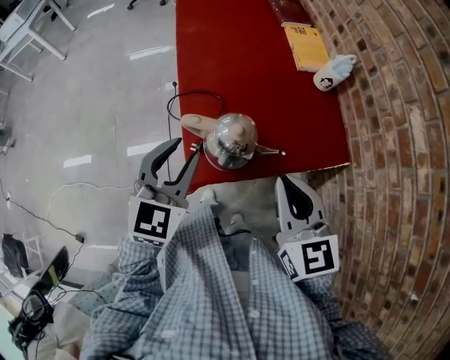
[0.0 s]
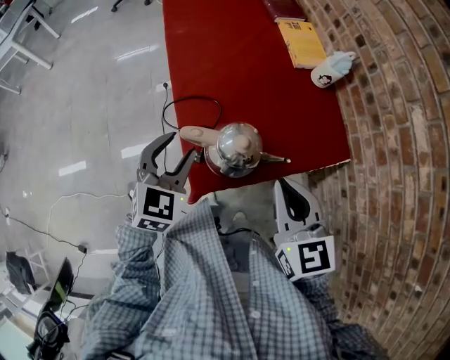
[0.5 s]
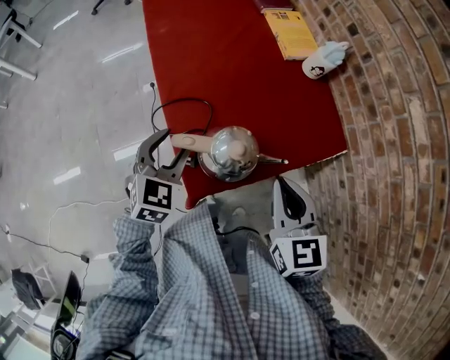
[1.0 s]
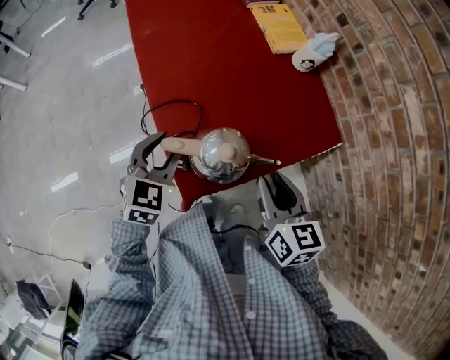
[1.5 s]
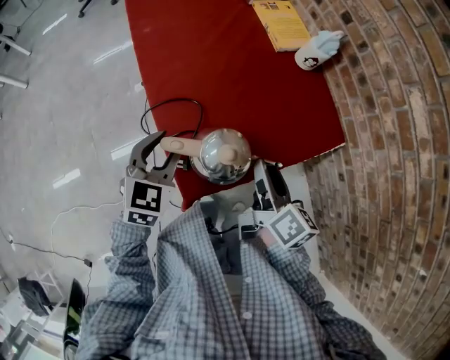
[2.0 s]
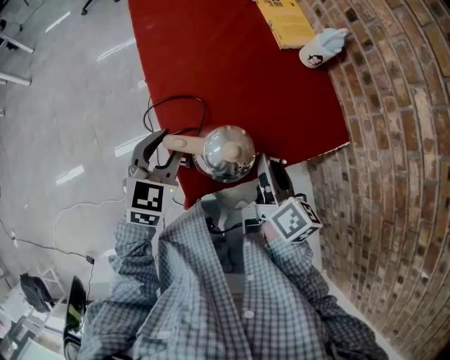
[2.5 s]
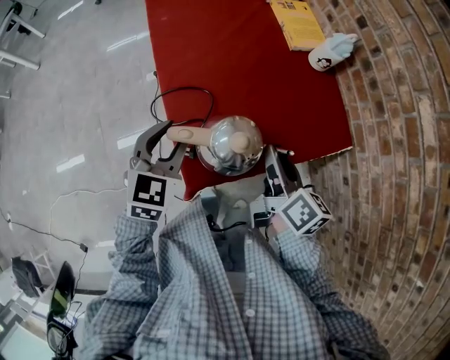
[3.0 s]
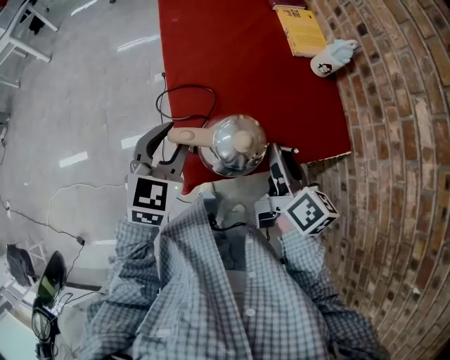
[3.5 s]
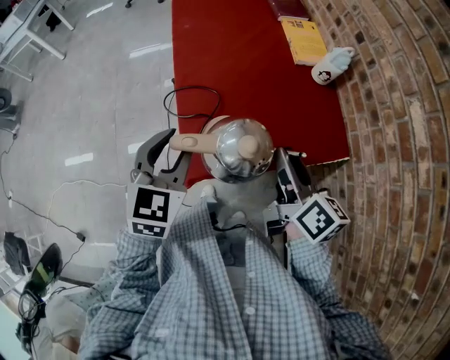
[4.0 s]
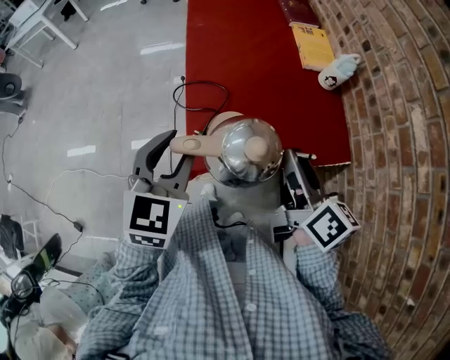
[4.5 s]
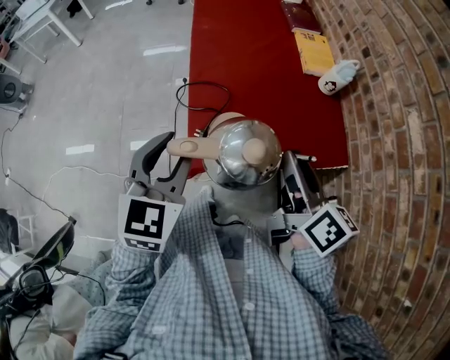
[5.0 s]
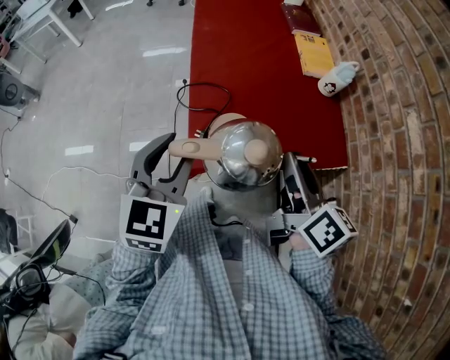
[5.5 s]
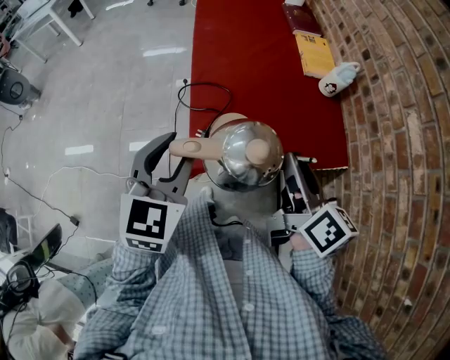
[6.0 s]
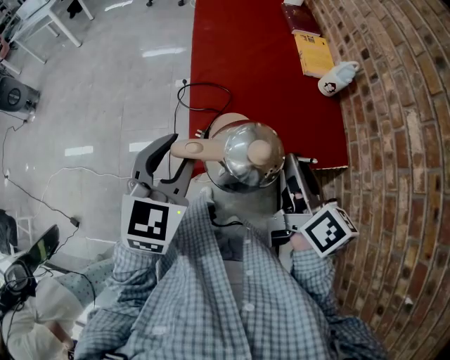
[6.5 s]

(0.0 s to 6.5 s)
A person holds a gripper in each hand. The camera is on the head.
0.0 s - 2.0 s: Both grippers travel together downward and forward, approximately 15 cm. The right gripper rotates around the line of its fingers by approximately 60 degrees, clockwise from behind, and opens up.
2.0 s - 4.5 s: The right gripper heads upward, covering some 10 cm, and turns by some 20 degrees; the left gripper shifts some 20 cm upward and backward, and swivels about 20 degrees.
4.5 s - 6.5 s: The grippers move only a little.

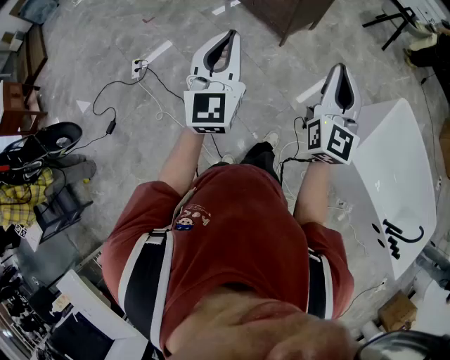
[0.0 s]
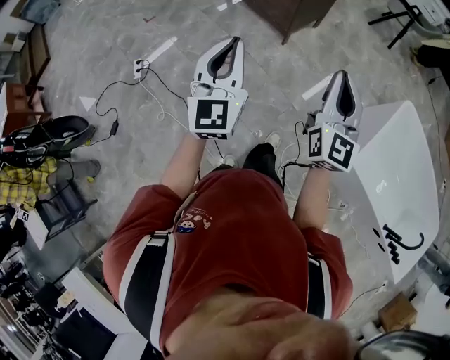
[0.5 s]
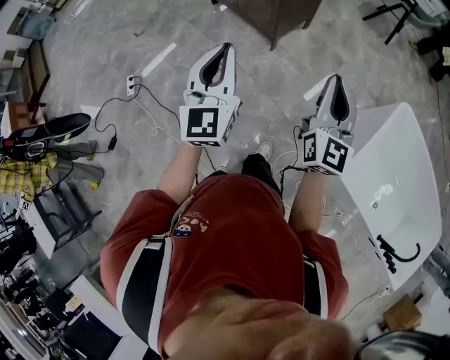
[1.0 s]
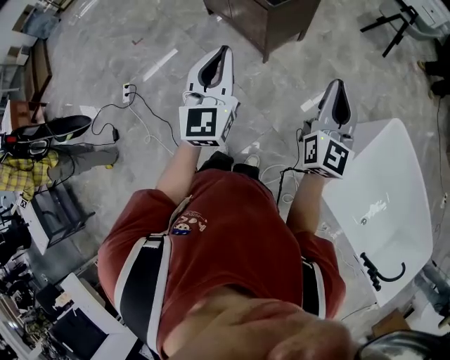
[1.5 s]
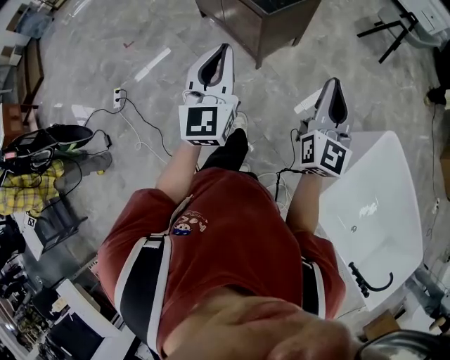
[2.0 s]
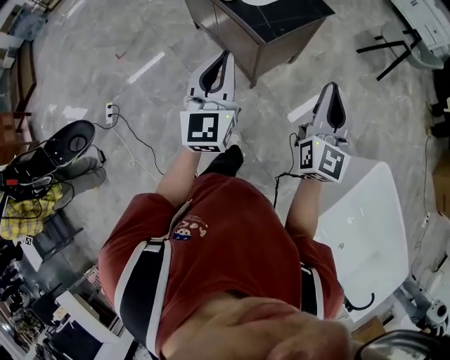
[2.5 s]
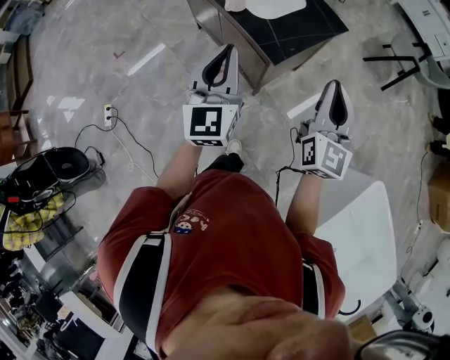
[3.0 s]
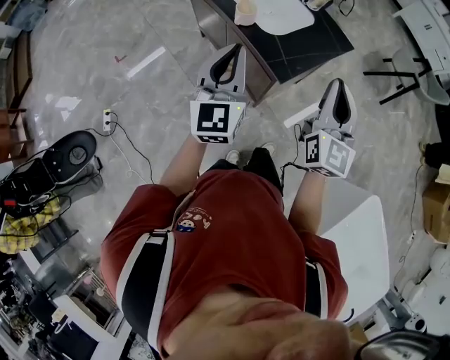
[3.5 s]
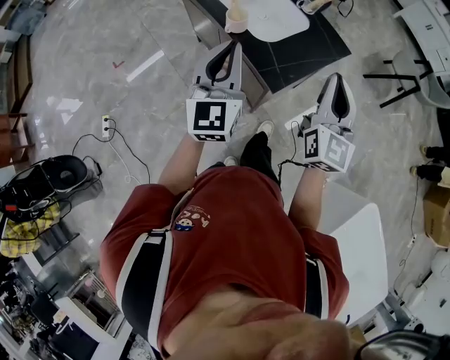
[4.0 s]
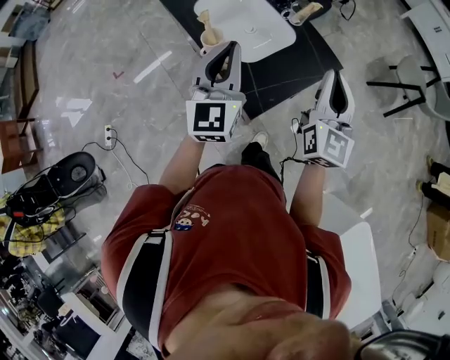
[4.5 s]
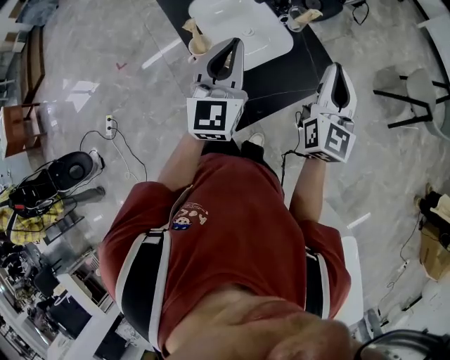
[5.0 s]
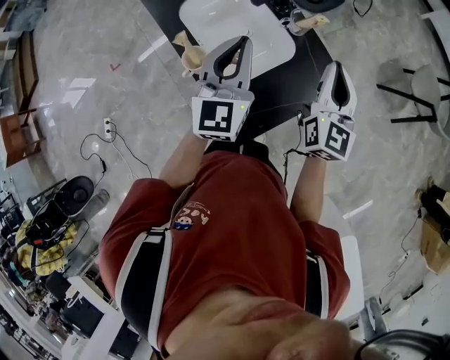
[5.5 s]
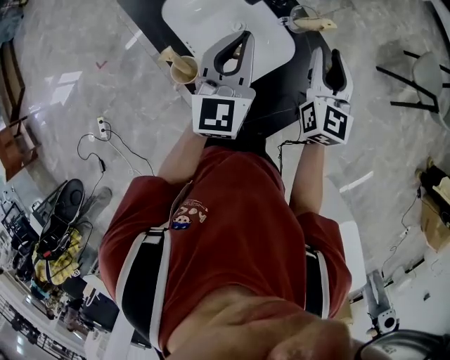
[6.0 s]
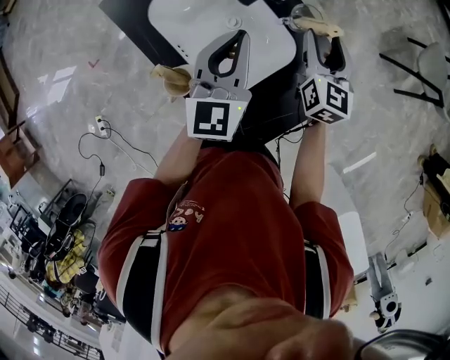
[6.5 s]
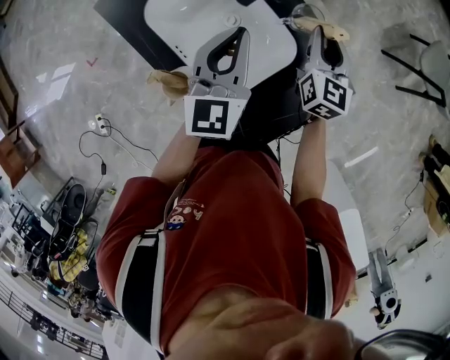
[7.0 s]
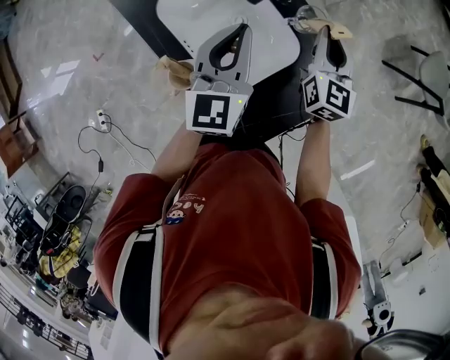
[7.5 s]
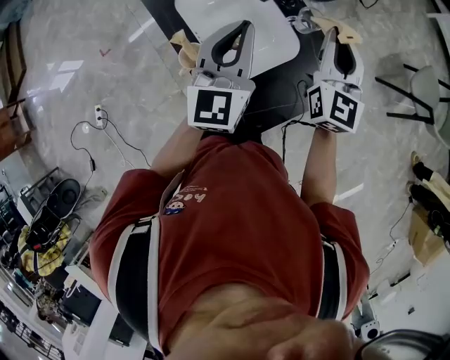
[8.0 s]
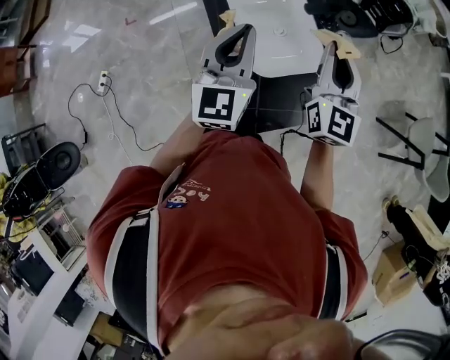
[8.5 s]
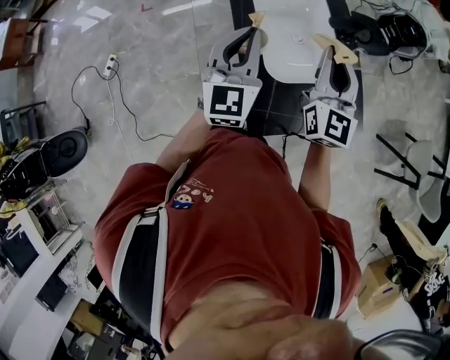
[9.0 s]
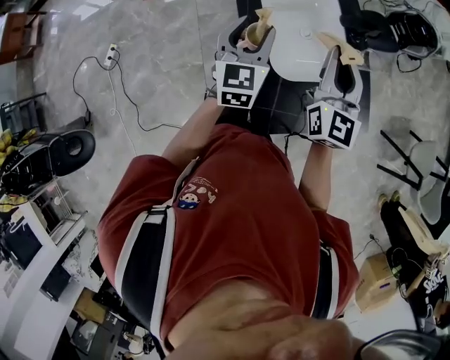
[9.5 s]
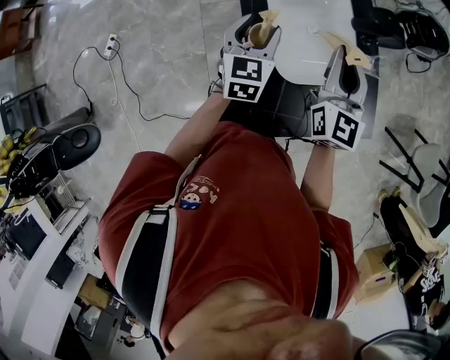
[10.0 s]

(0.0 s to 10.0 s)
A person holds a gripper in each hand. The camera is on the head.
0.0 s - 2.0 s: The two grippers go approximately 35 cm forward and to the right.
2.0 s - 4.0 s: Both grippers travel together forward, some 40 cm.
4.0 s - 6.0 s: Both grippers travel together forward, some 35 cm. The right gripper opens up.
6.0 s - 8.0 s: The left gripper shifts by some 5 cm. The right gripper goes roughly 10 cm upward, and closes its fingers.
8.0 s - 10.0 s: The left gripper goes roughly 20 cm to the left and downward, rotates roughly 30 degrees, and opens up. Meanwhile the right gripper heads to the left, covering roughly 15 cm, and turns by some 20 degrees.

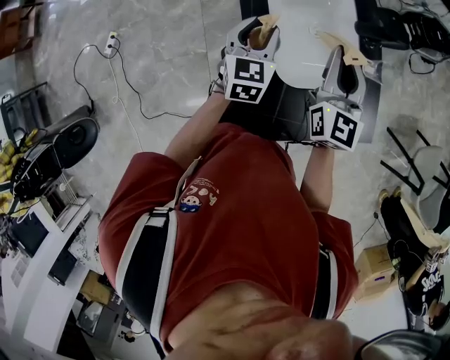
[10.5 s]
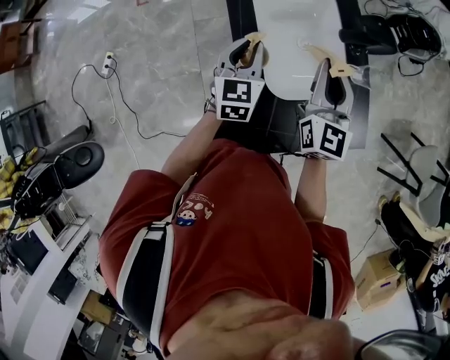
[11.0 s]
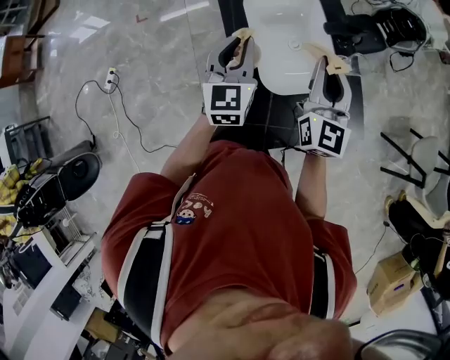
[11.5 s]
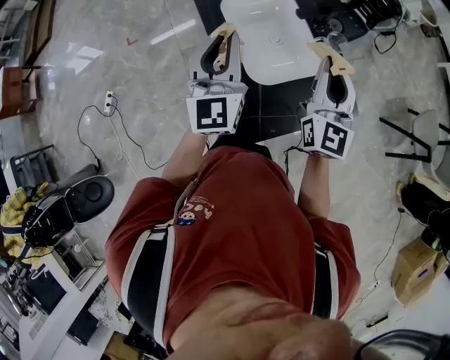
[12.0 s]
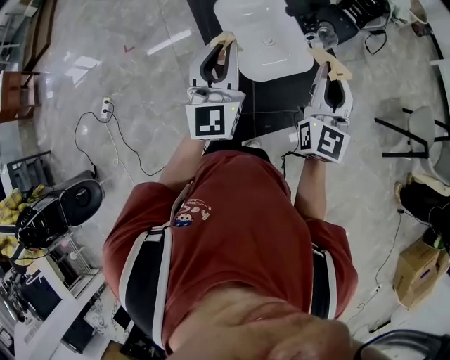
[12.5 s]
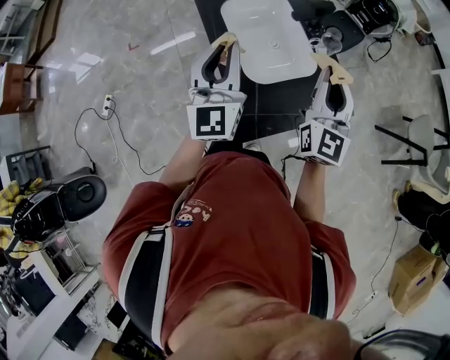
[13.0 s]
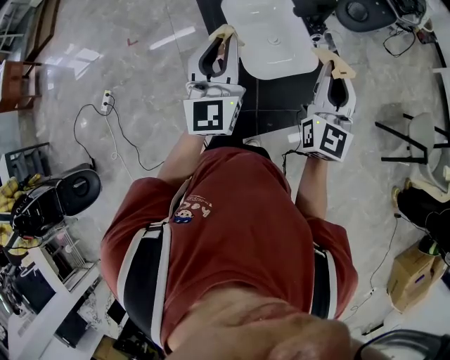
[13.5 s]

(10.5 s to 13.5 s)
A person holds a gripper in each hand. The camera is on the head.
10.5 s - 12.0 s: The left gripper heads upward and backward, covering roughly 20 cm, points its fingers some 30 degrees further upward, and closes up. The right gripper moves backward, upward and to the right, some 15 cm.
12.0 s - 13.5 s: The grippers move only a little.

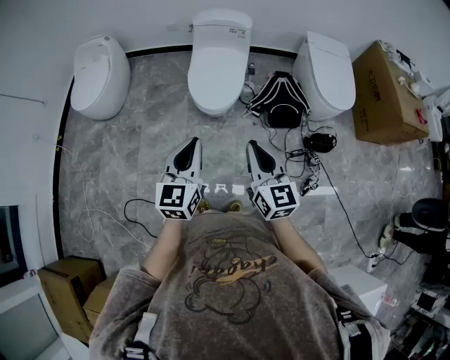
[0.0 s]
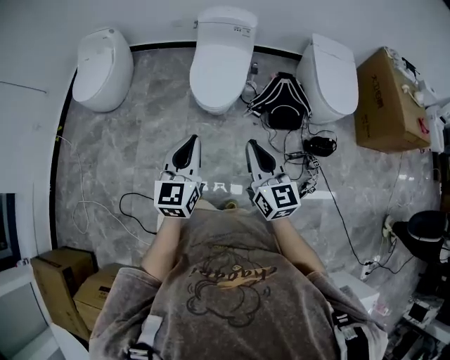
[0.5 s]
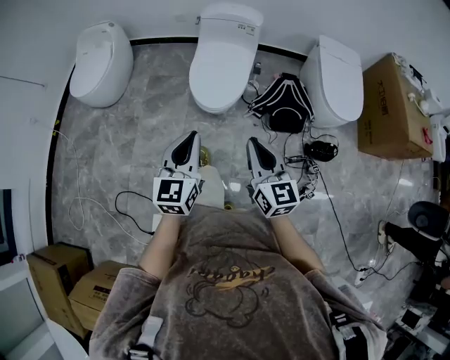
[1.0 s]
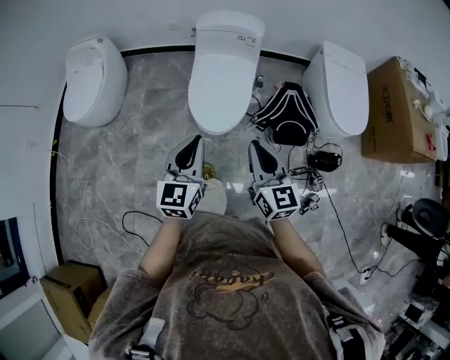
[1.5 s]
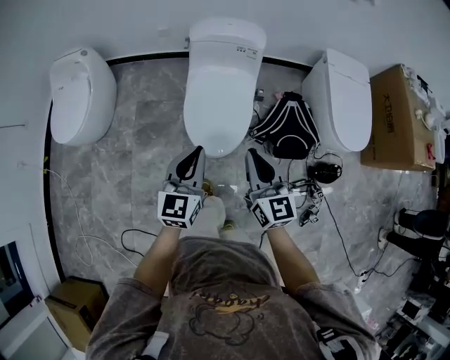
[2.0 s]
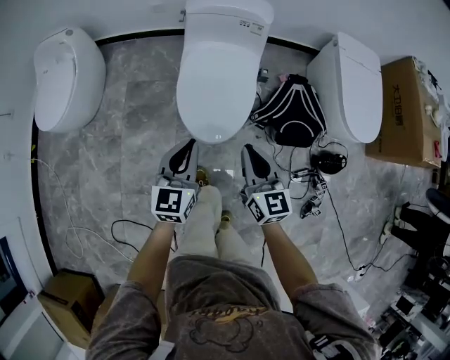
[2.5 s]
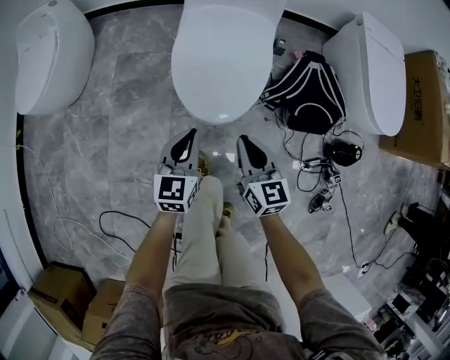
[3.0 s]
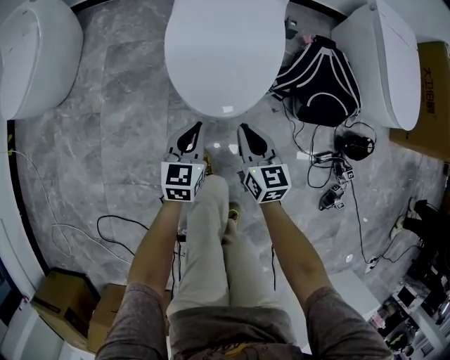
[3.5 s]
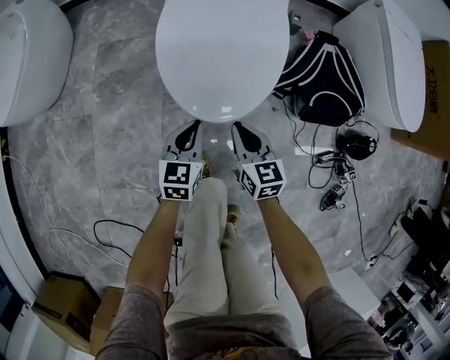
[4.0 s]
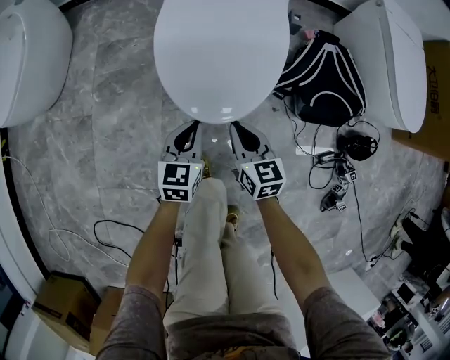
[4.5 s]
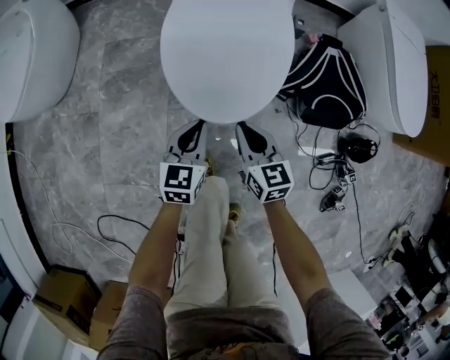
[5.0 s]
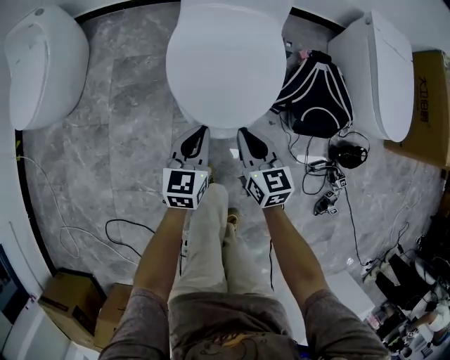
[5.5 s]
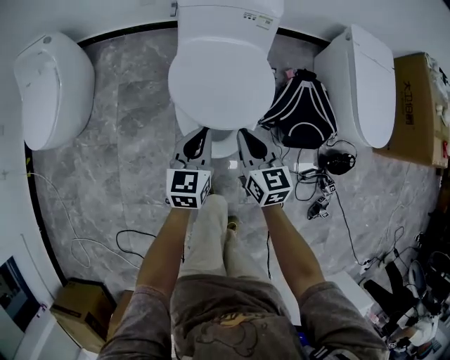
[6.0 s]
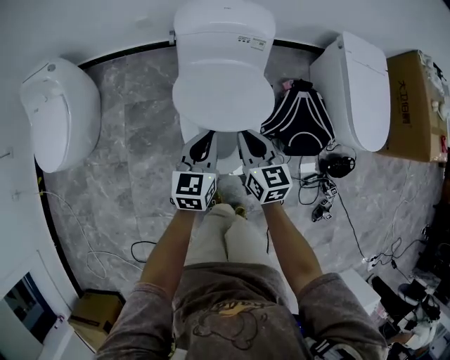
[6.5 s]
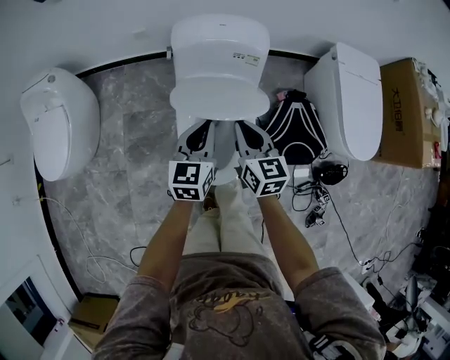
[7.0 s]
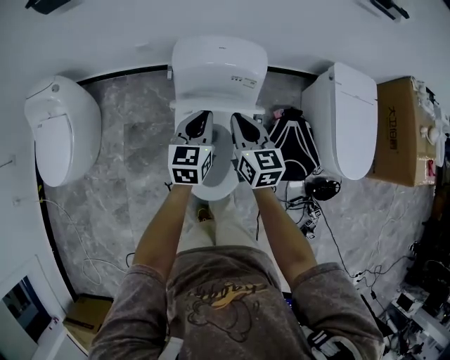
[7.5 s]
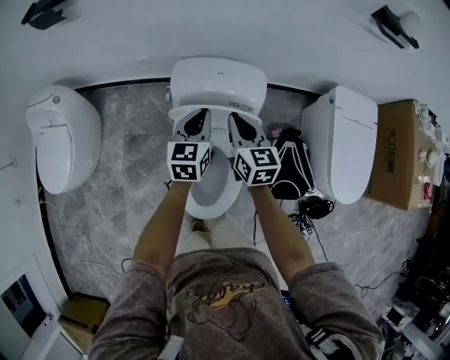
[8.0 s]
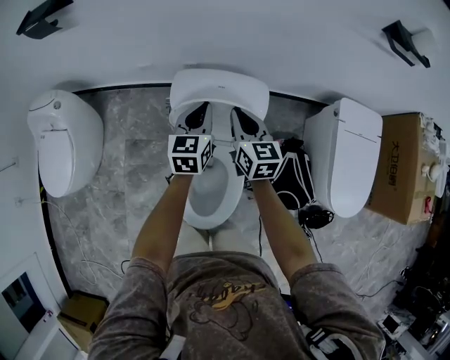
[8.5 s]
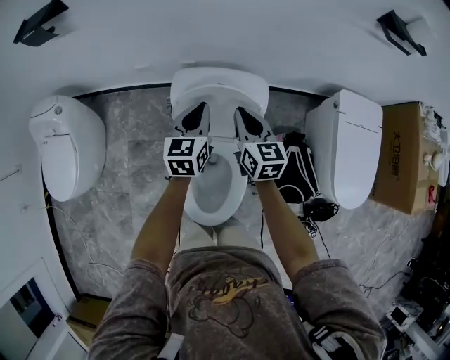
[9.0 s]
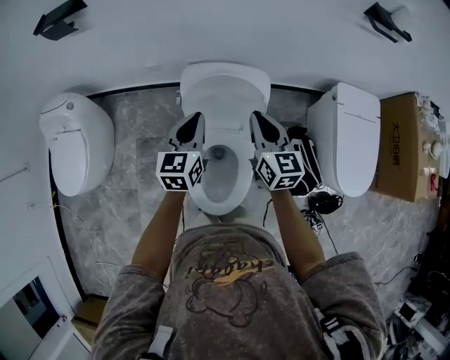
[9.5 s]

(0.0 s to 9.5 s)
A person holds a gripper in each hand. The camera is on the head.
0.0 s - 2.0 s: The grippers both shift forward by roughly 35 cm.
2.0 s - 4.0 s: The grippers both shift downward by some 50 cm. The right gripper rotates about 20 degrees.
4.0 s - 5.5 s: The two grippers go about 15 cm upward.
5.5 s - 7.5 s: Both grippers move forward and upward, roughly 40 cm.
7.5 s - 9.5 s: Both grippers move forward and upward, roughly 10 cm.
